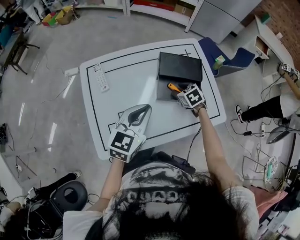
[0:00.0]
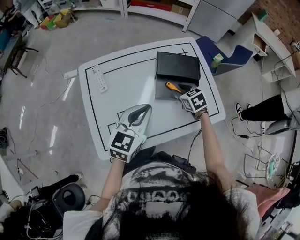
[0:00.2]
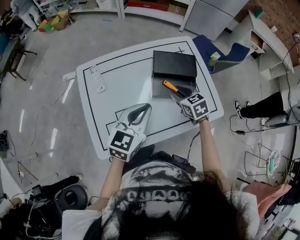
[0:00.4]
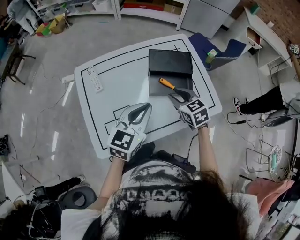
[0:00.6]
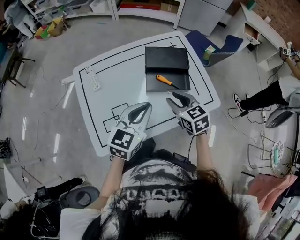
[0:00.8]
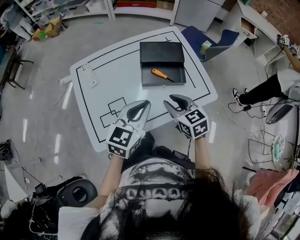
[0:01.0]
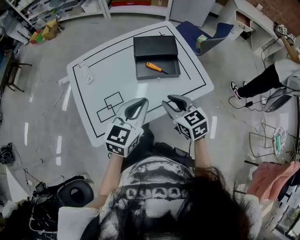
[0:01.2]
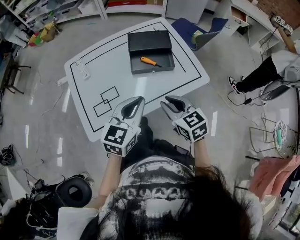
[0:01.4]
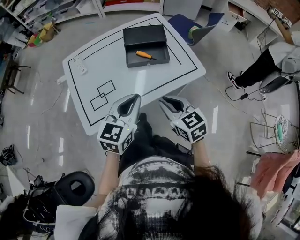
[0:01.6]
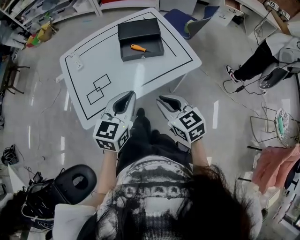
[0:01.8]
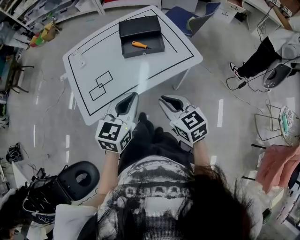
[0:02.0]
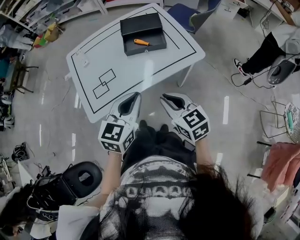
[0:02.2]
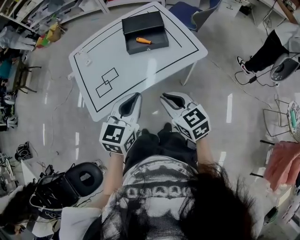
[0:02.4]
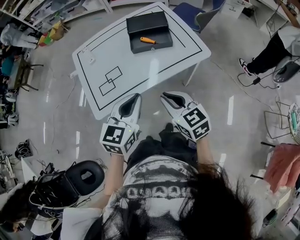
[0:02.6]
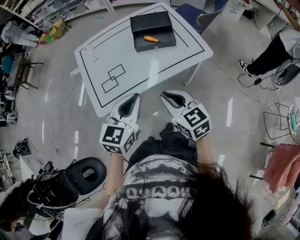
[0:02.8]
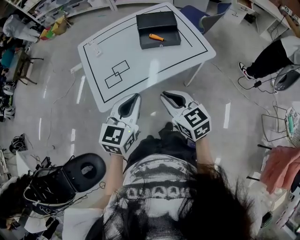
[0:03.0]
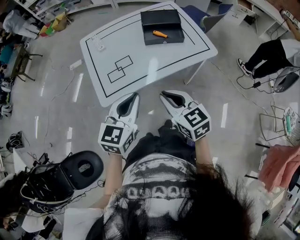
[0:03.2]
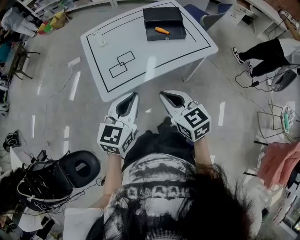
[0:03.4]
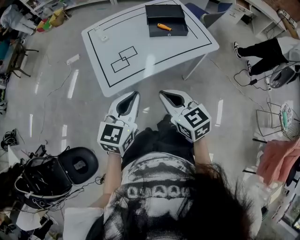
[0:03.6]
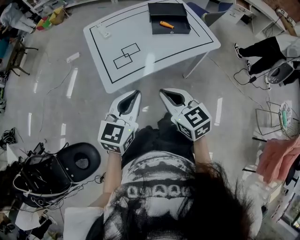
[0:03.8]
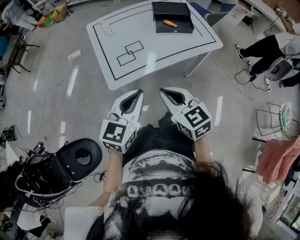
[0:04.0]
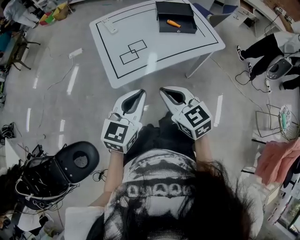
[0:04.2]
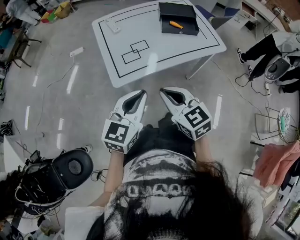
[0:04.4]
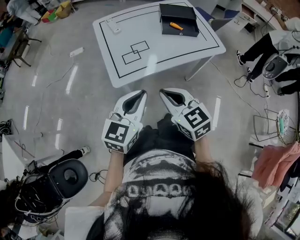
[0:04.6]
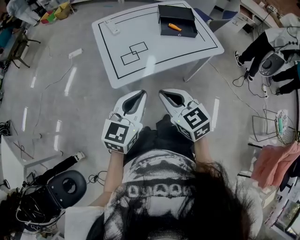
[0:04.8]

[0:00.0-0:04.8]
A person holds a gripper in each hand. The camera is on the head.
0:00.0 to 0:01.6: The left gripper heads backward and to the right, covering approximately 20 cm, while the right gripper is displaced backward and upward by about 35 cm, rotates roughly 30 degrees, and closes.
0:01.6 to 0:03.2: The two grippers go some 15 cm backward and to the left.
0:03.2 to 0:04.8: Both grippers move to the left and backward, some 15 cm.

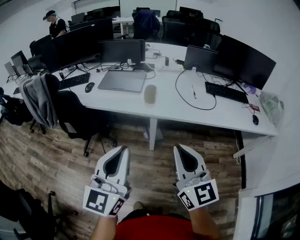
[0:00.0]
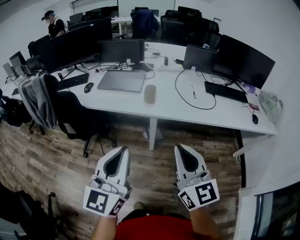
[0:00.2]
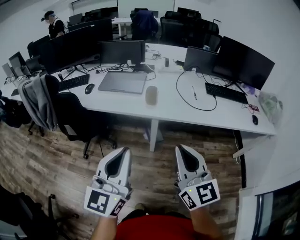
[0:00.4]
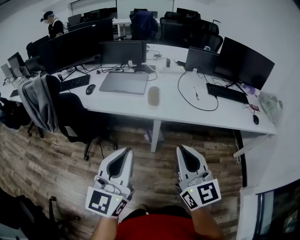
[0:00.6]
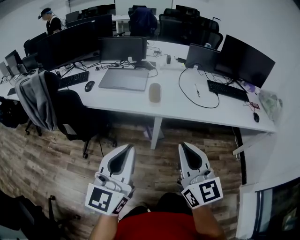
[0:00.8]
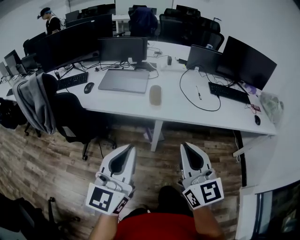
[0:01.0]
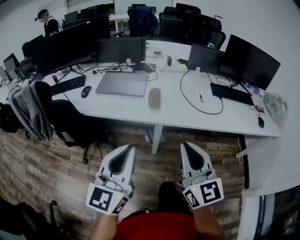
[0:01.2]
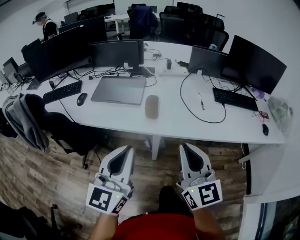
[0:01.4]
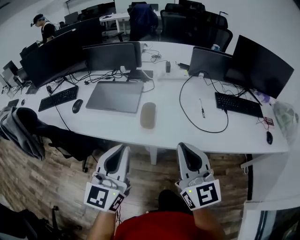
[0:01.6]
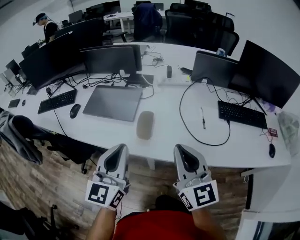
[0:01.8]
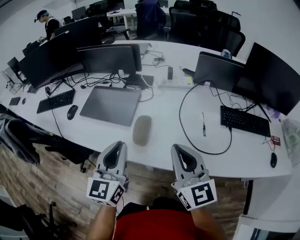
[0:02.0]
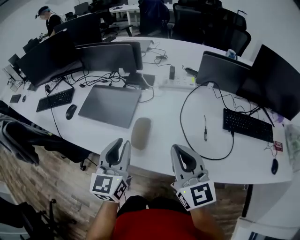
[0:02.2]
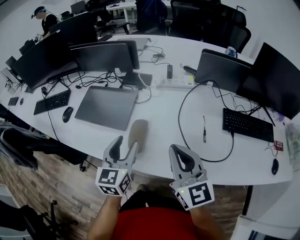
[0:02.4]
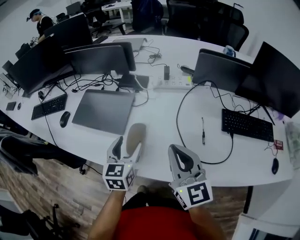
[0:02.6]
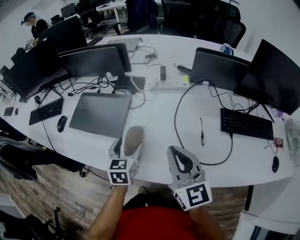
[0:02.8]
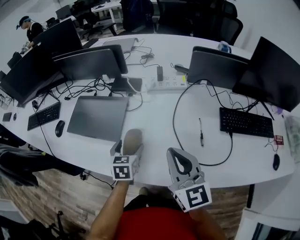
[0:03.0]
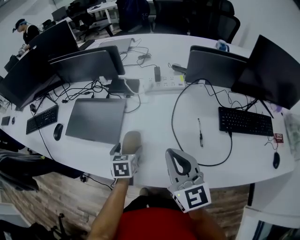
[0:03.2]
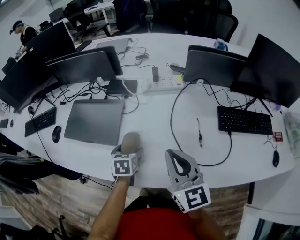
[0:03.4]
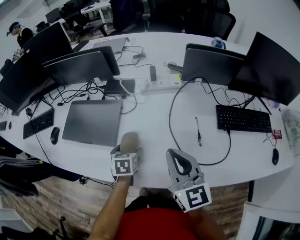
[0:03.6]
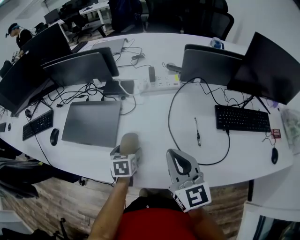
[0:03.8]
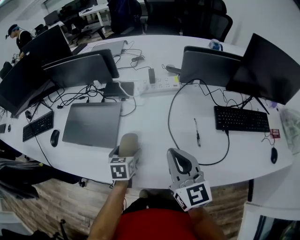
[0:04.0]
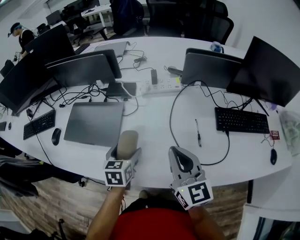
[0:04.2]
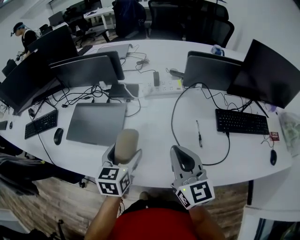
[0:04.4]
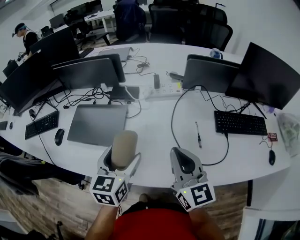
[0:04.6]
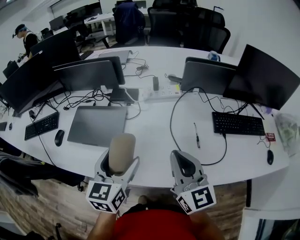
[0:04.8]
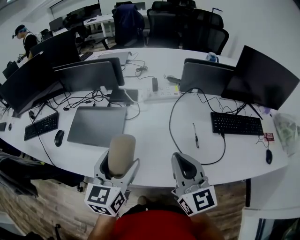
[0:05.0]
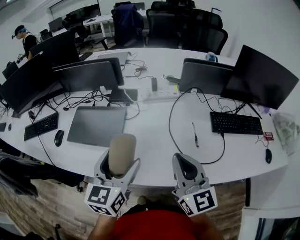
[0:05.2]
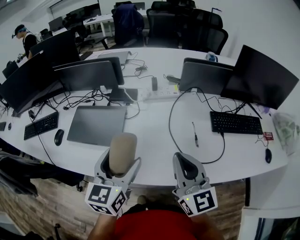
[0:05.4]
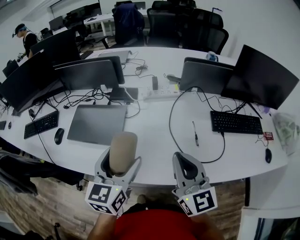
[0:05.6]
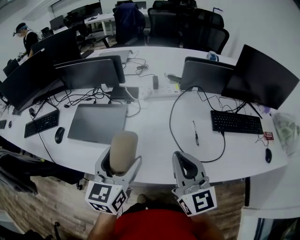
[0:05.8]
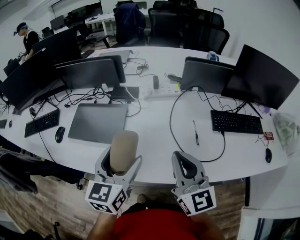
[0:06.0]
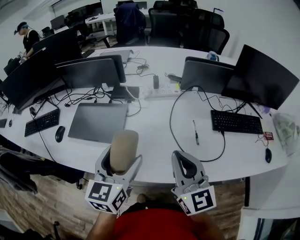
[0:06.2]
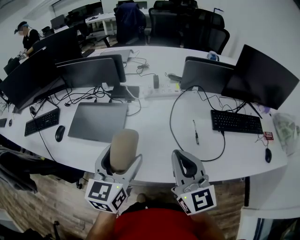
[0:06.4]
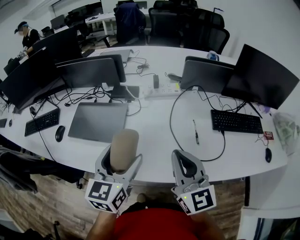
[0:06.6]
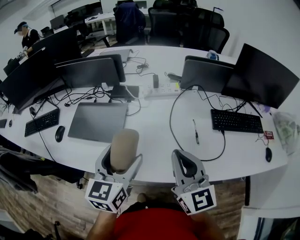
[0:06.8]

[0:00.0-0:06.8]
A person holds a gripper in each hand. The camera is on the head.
0:00.0 to 0:01.4: Both grippers move forward, about 15 cm.
0:01.4 to 0:02.8: The right gripper travels forward and to the right by some 30 cm. Meanwhile the left gripper goes approximately 40 cm forward and downward, tips its fingers downward by some 40 degrees, and opens its fingers.
0:02.8 to 0:04.0: The left gripper heads downward, covering some 5 cm.
0:04.0 to 0:05.4: The right gripper goes approximately 10 cm upward and backward, while the left gripper travels upward by about 25 cm, and points its fingers roughly 30 degrees further upward.
0:05.4 to 0:06.8: Both grippers stay put.

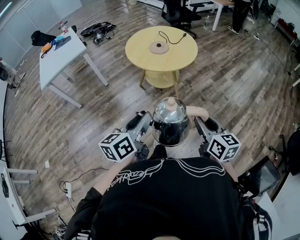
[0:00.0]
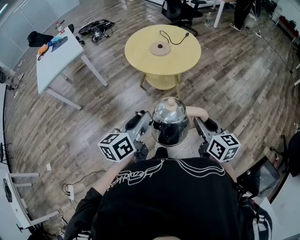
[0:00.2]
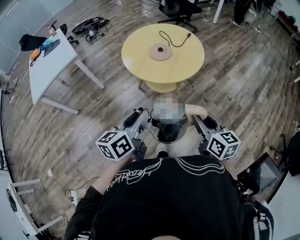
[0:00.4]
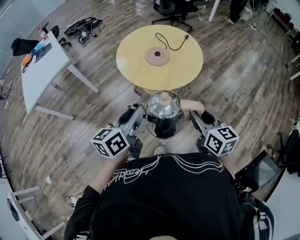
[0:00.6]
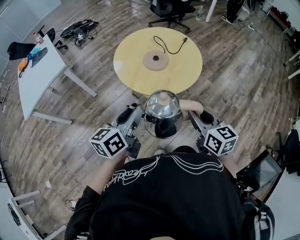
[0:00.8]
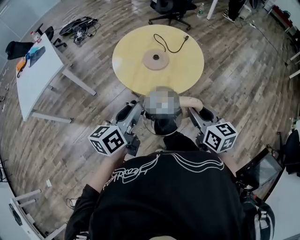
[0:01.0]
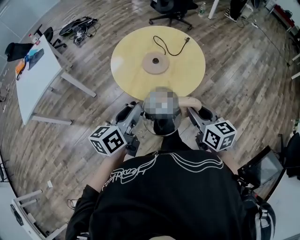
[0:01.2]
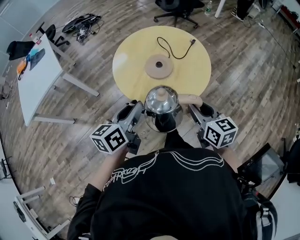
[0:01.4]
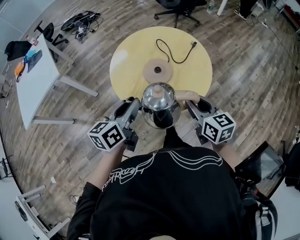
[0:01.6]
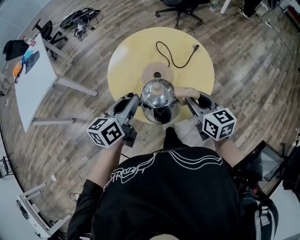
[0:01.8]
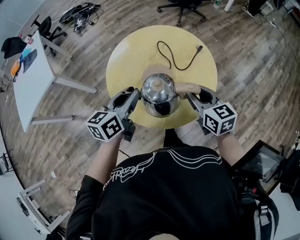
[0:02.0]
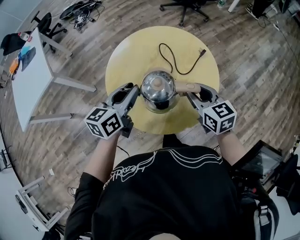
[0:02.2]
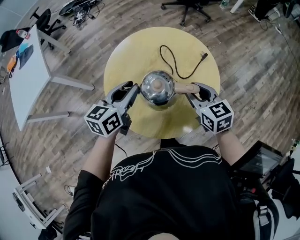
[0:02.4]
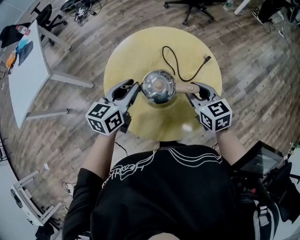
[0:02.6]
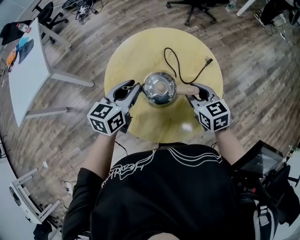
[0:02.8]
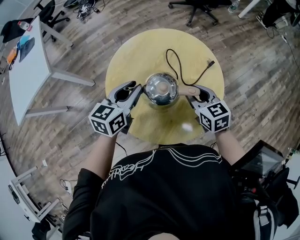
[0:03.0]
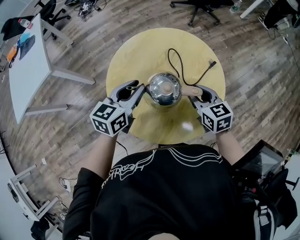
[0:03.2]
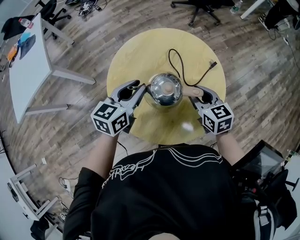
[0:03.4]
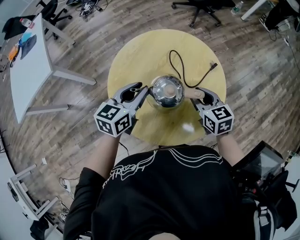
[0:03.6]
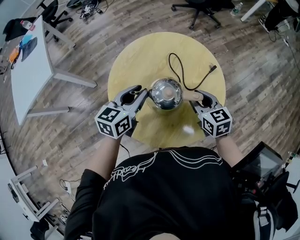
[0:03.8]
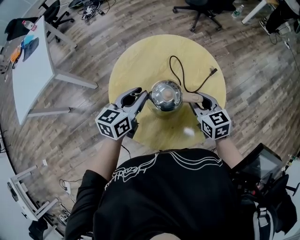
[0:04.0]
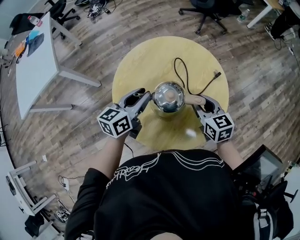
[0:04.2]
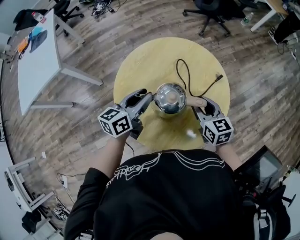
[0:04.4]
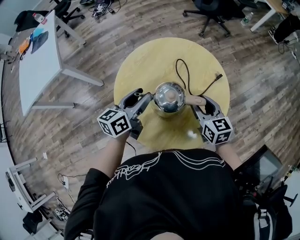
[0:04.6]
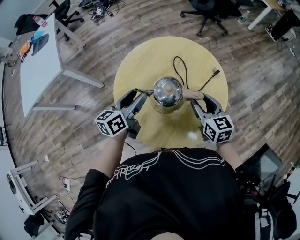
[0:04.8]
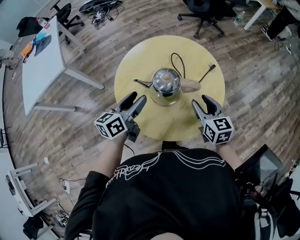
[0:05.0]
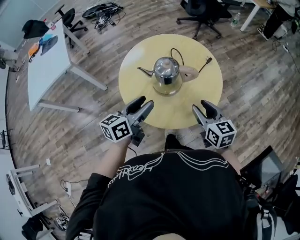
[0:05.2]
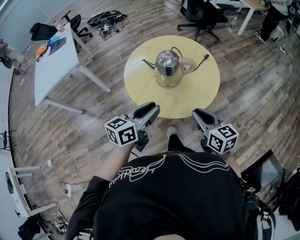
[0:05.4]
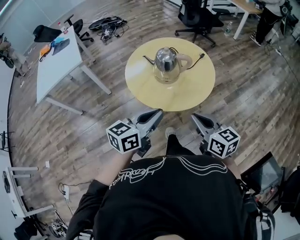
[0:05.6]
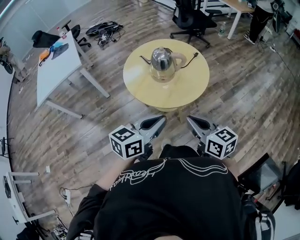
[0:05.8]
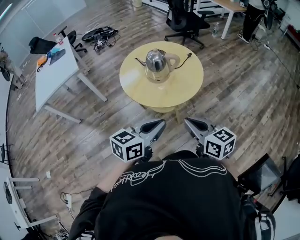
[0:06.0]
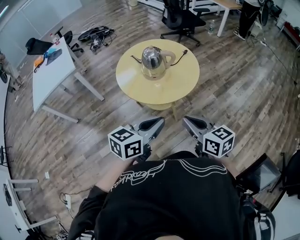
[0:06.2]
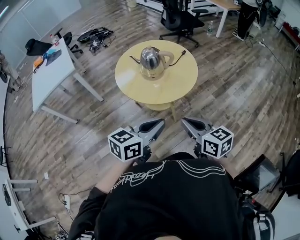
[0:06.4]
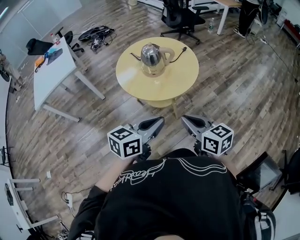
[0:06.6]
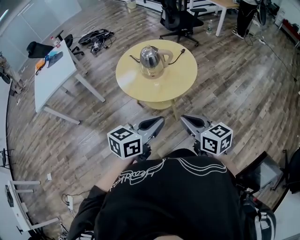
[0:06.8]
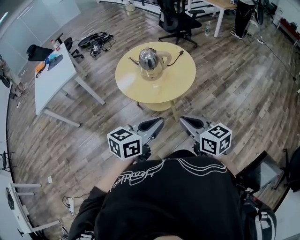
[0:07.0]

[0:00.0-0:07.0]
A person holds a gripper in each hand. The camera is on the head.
0:00.0 to 0:01.4: Both grippers move forward, roughly 40 cm.
0:01.4 to 0:02.8: Both grippers move forward, roughly 25 cm. The right gripper changes its angle by approximately 20 degrees.
0:02.8 to 0:04.2: The grippers move only a little.
0:04.2 to 0:05.6: Both grippers travel together backward, approximately 30 cm. The left gripper closes. Meanwhile the right gripper closes up.
0:05.6 to 0:07.0: The right gripper goes roughly 10 cm backward; the left gripper is displaced backward and to the right by about 15 cm.

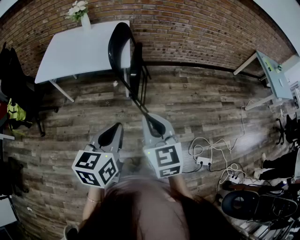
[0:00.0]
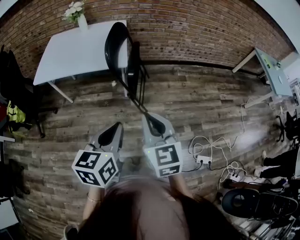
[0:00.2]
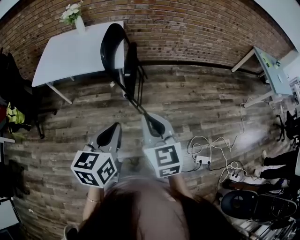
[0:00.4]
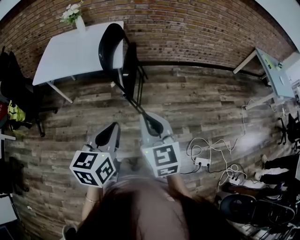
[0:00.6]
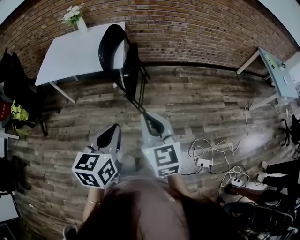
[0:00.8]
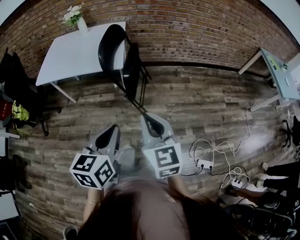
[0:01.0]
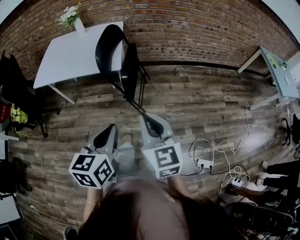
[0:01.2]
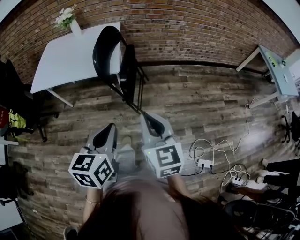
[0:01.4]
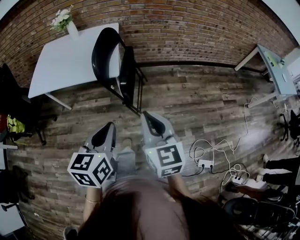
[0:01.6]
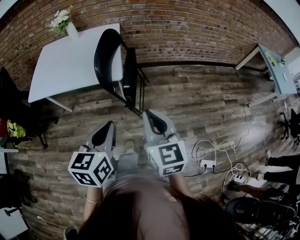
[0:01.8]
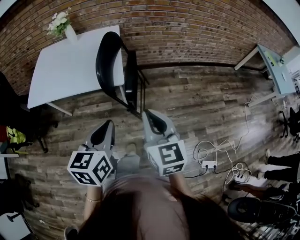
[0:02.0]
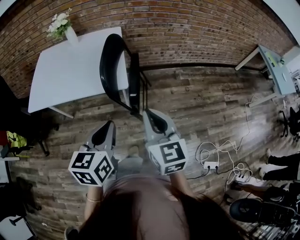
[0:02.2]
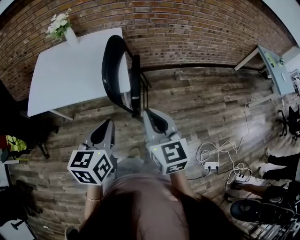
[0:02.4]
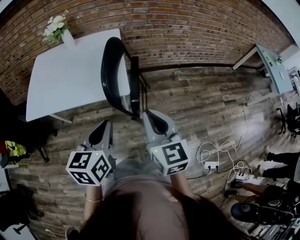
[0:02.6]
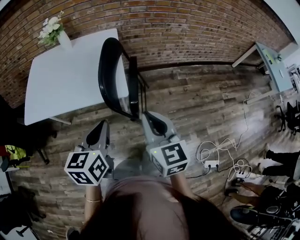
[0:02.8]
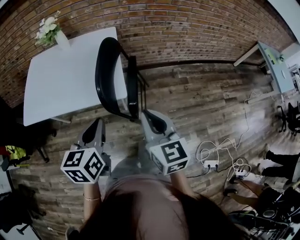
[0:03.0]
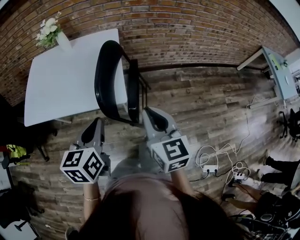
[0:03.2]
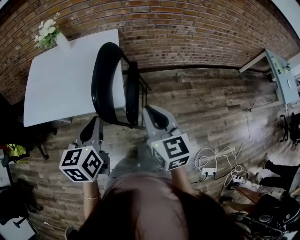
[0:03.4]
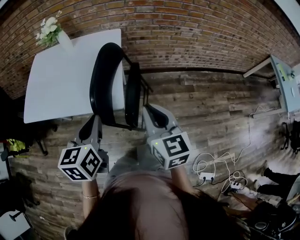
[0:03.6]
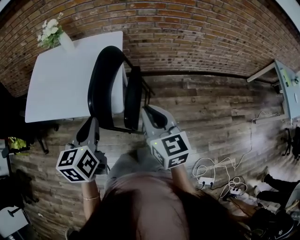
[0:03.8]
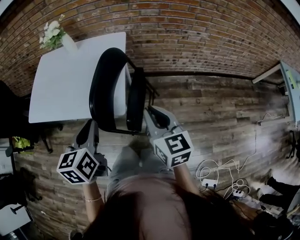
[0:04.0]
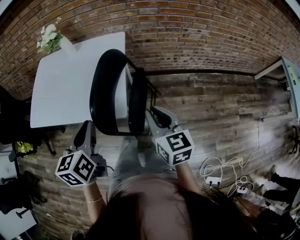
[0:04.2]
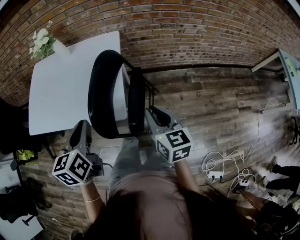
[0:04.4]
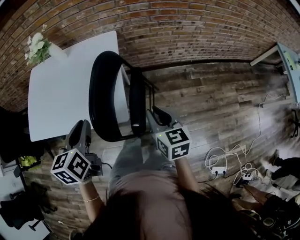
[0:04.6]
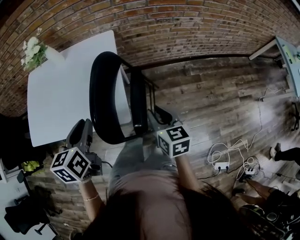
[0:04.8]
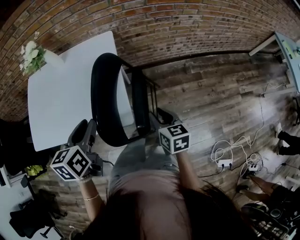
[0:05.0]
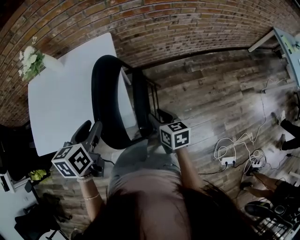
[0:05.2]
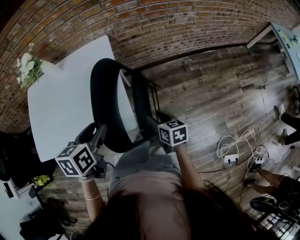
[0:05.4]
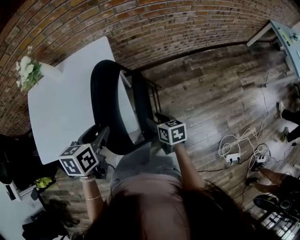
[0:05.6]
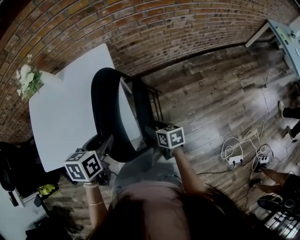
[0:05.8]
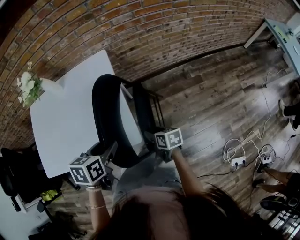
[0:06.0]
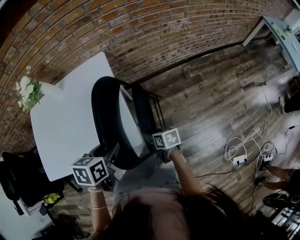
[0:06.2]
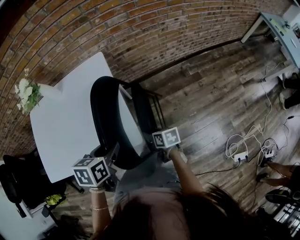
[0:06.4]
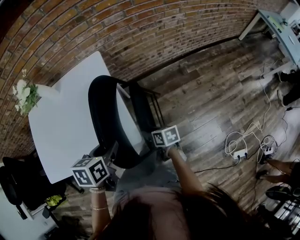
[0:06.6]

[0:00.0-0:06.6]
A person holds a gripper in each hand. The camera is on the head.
0:00.0 to 0:01.6: The right gripper travels forward and to the right by approximately 10 cm, while the left gripper shifts roughly 10 cm forward.
0:01.6 to 0:03.2: The right gripper moves forward, about 20 cm; the left gripper heads forward and to the left, covering approximately 25 cm.
0:03.2 to 0:05.0: The left gripper goes roughly 15 cm forward, and opens up. The right gripper heads downward and forward, covering roughly 20 cm, rotates about 20 degrees, and opens its fingers.
0:05.0 to 0:06.6: The right gripper travels downward and to the left by some 15 cm, and swivels roughly 30 degrees. Meanwhile the left gripper goes approximately 10 cm downward, and rotates approximately 20 degrees.
